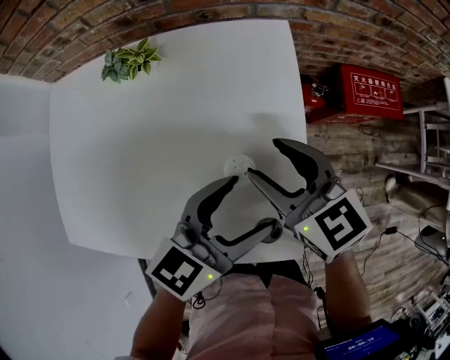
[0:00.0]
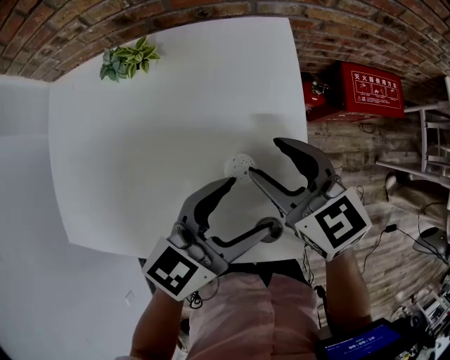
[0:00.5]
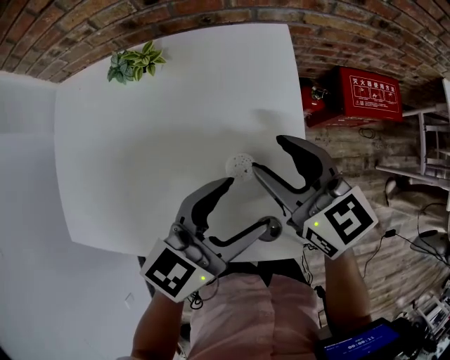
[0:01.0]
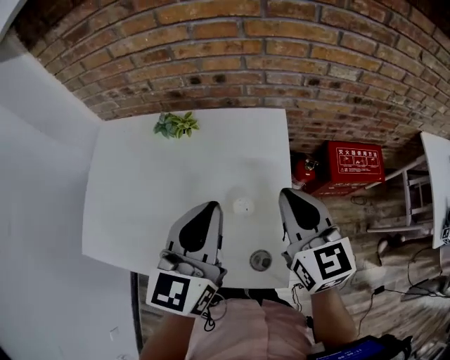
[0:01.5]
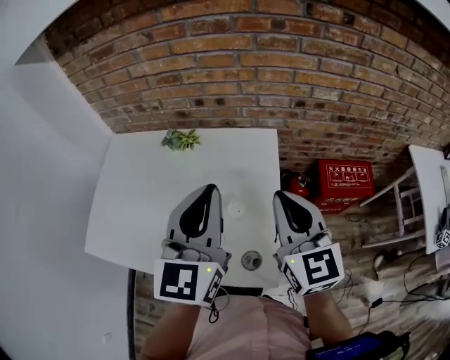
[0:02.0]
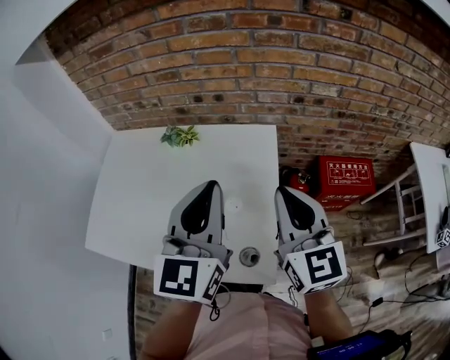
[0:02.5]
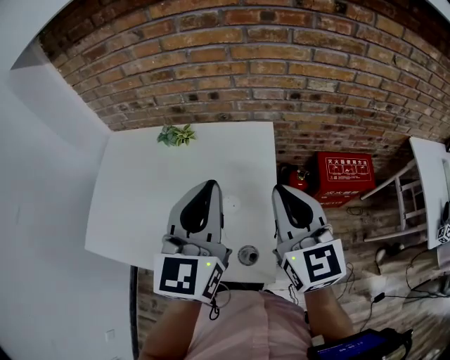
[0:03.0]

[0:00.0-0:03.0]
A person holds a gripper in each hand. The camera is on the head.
0:00.0 to 0:01.5: The left gripper goes about 15 cm upward and to the left, changes its angle by roughly 40 degrees, and closes up, while the right gripper is displaced upward by roughly 10 cm, changes its angle by roughly 20 degrees, and closes.
0:01.5 to 0:03.0: The two grippers go some 10 cm upward.

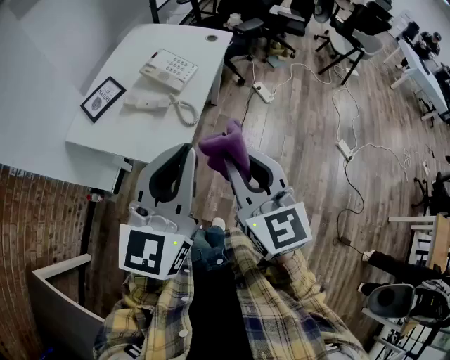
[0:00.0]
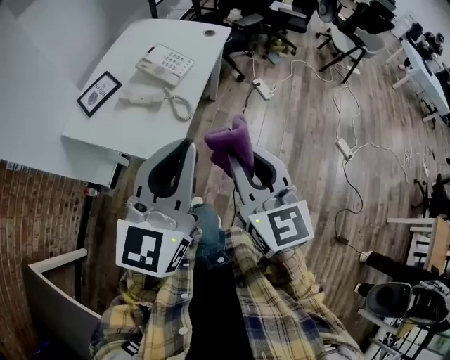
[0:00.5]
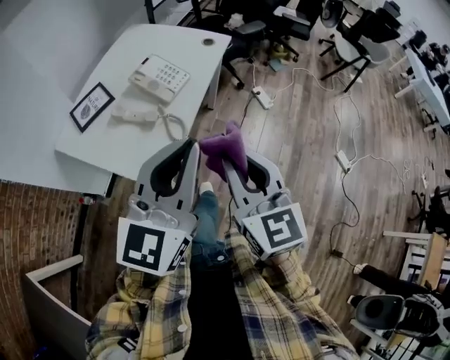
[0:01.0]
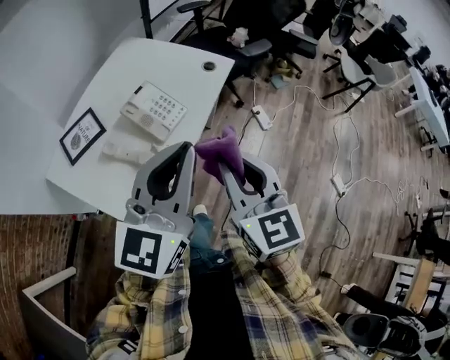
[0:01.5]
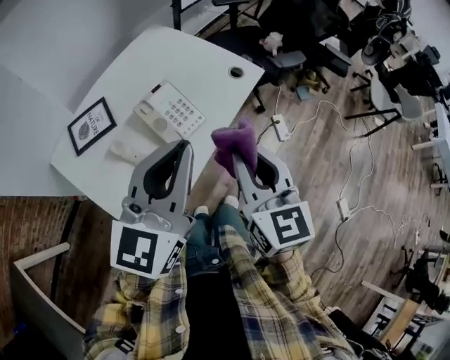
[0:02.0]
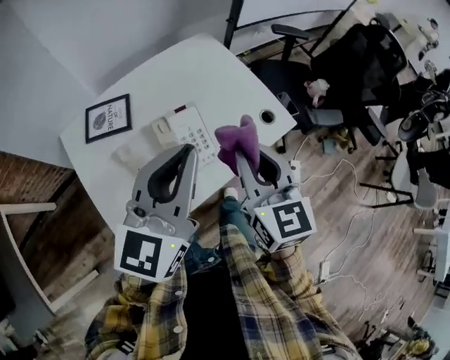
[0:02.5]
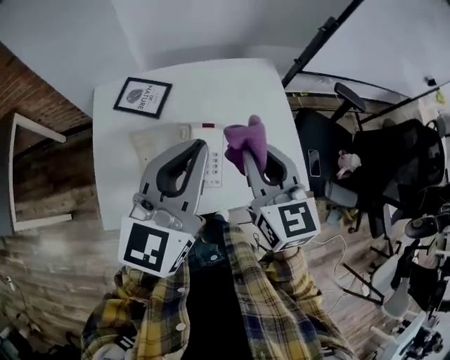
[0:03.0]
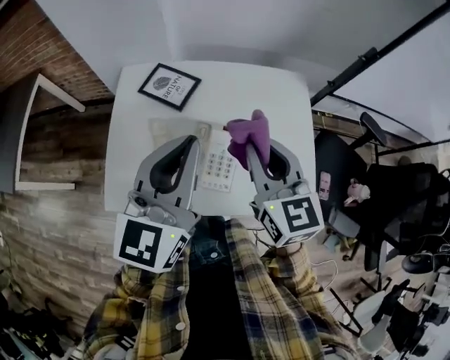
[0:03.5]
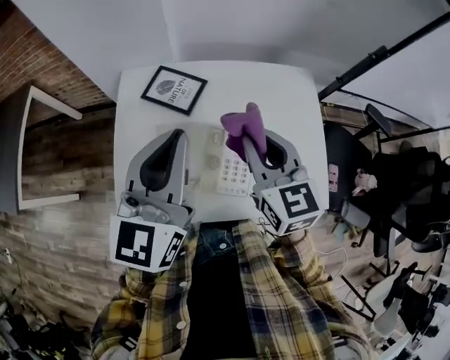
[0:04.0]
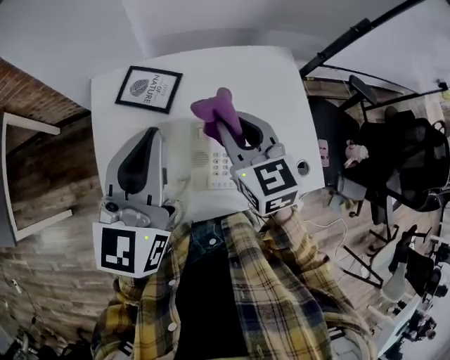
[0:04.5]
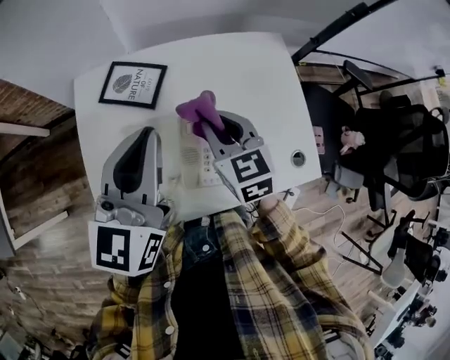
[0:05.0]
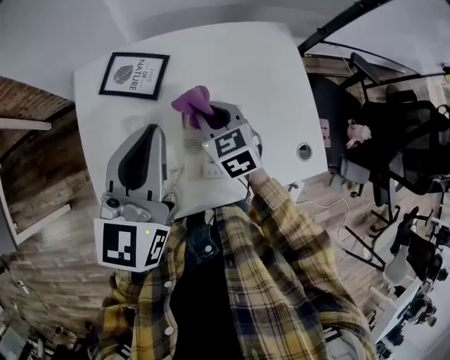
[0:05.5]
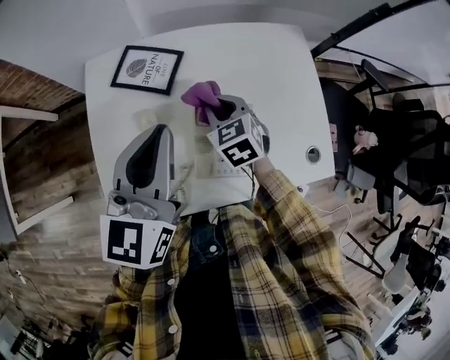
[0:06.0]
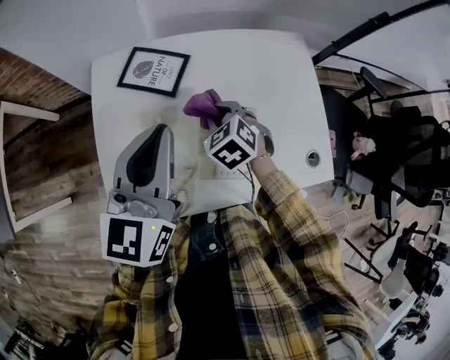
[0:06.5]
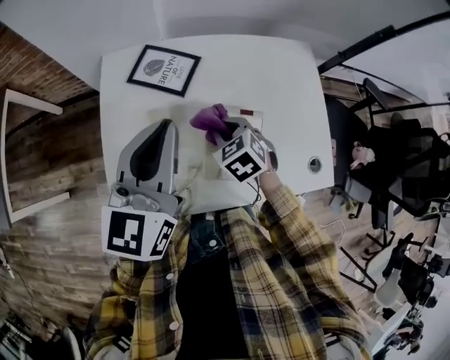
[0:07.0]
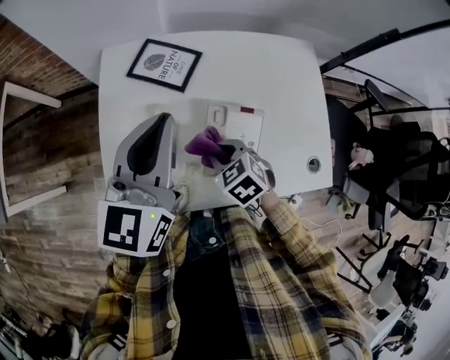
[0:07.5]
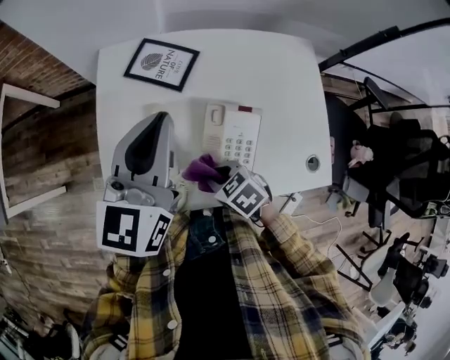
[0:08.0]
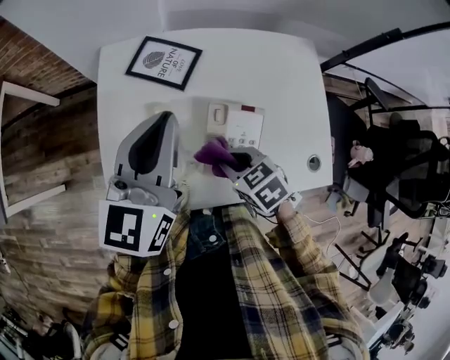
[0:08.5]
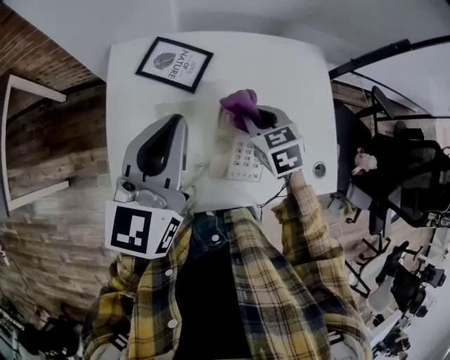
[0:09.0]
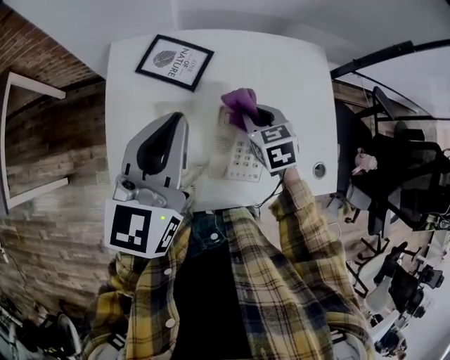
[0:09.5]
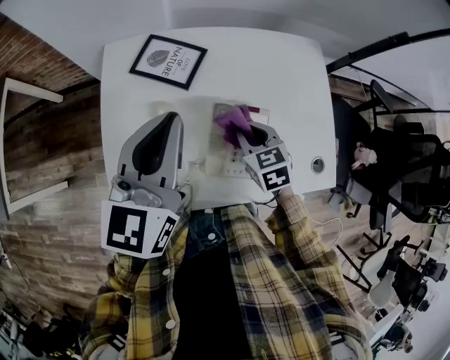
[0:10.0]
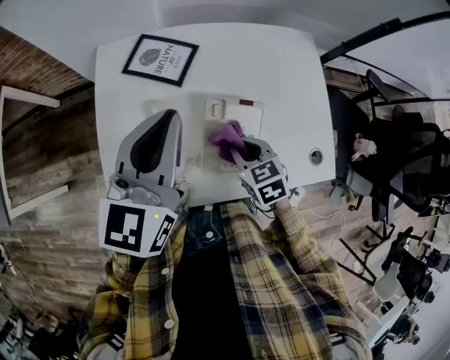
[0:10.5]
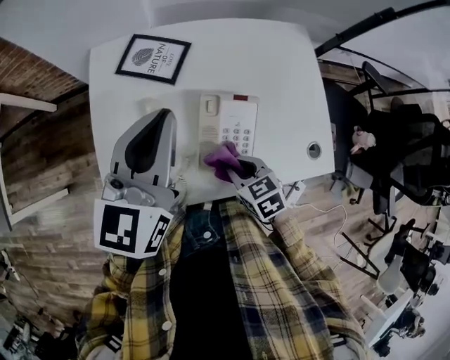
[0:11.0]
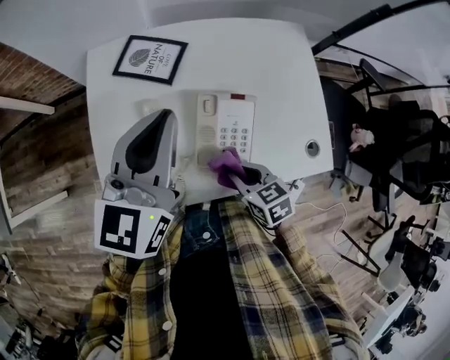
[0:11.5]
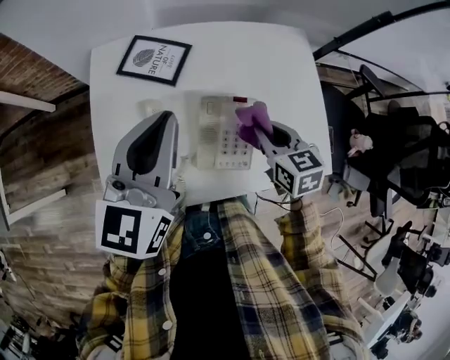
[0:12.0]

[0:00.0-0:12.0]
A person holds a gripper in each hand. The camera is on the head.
0:00.0 to 0:02.0: The grippers both shift forward by some 30 cm.
0:02.0 to 0:04.0: The right gripper changes place by approximately 30 cm, and swivels roughly 60 degrees. The left gripper shifts by about 20 cm, and turns by roughly 60 degrees.
0:04.0 to 0:06.0: The left gripper moves downward, some 5 cm. Meanwhile the right gripper is displaced downward by some 20 cm, and turns by about 30 degrees.
0:06.0 to 0:08.0: The right gripper changes place by about 20 cm, and rotates approximately 30 degrees.
0:08.0 to 0:10.0: The right gripper shifts about 15 cm forward and to the right, and rotates some 30 degrees.
0:10.0 to 0:12.0: The right gripper heads to the right and upward, covering about 10 cm, and goes backward and returns, some 15 cm each way.

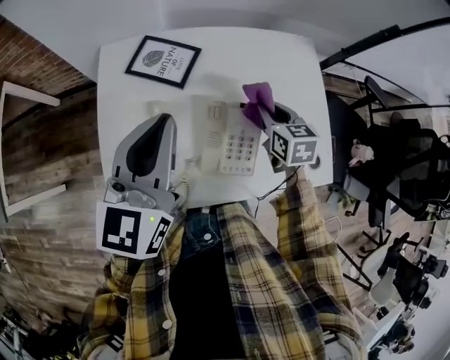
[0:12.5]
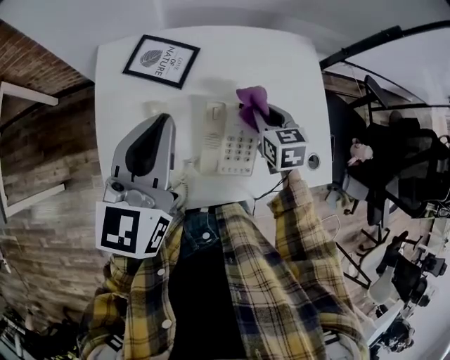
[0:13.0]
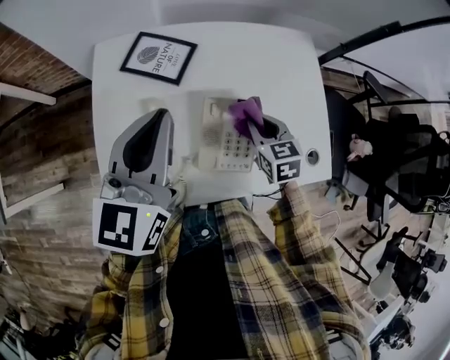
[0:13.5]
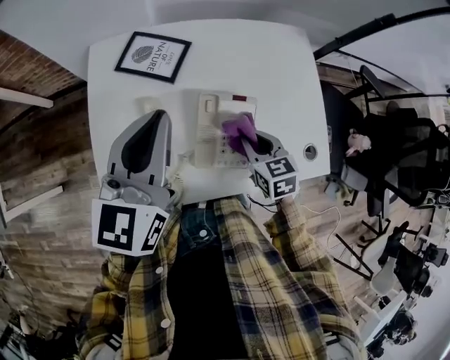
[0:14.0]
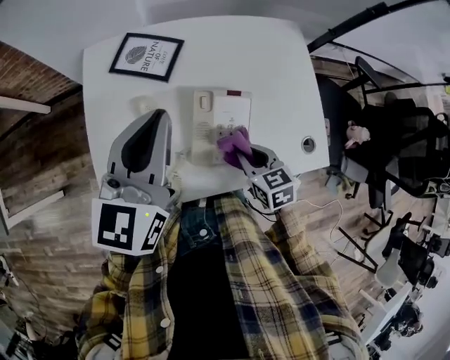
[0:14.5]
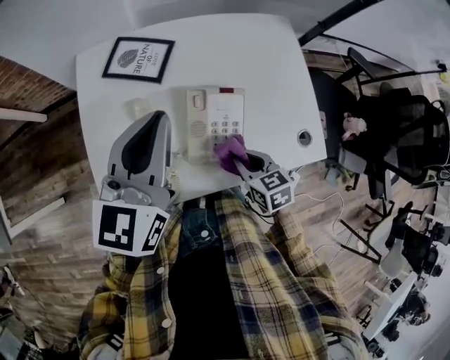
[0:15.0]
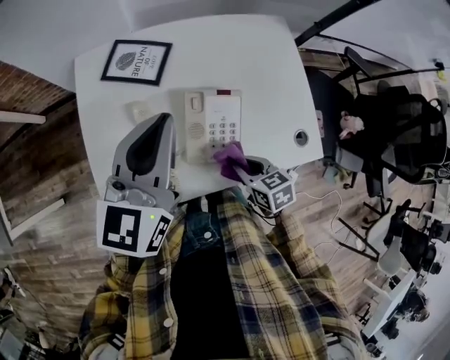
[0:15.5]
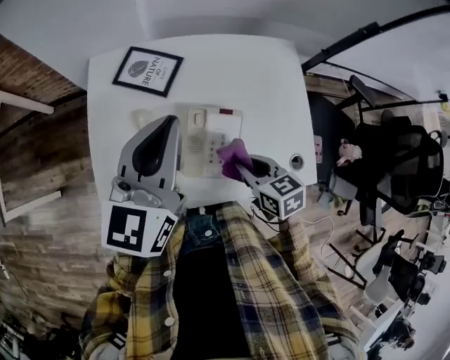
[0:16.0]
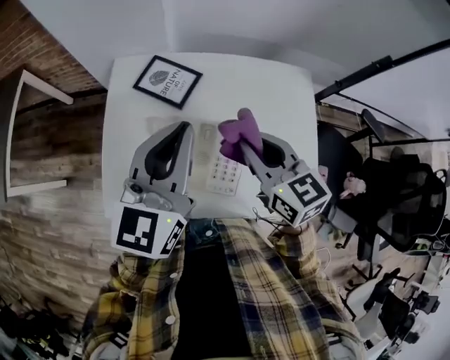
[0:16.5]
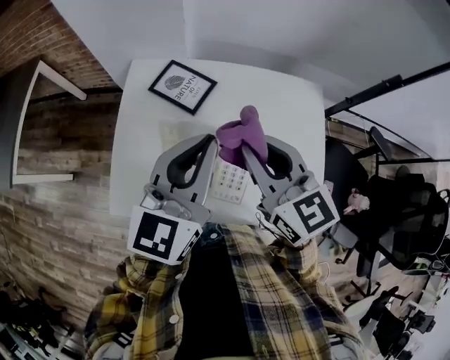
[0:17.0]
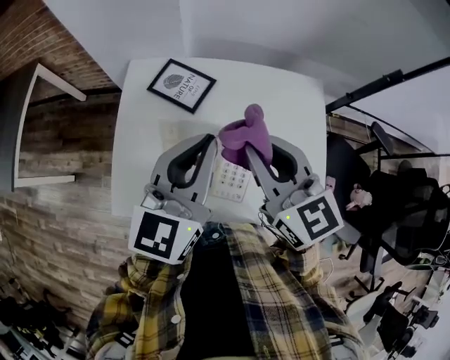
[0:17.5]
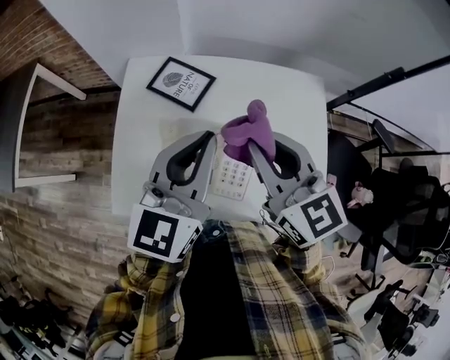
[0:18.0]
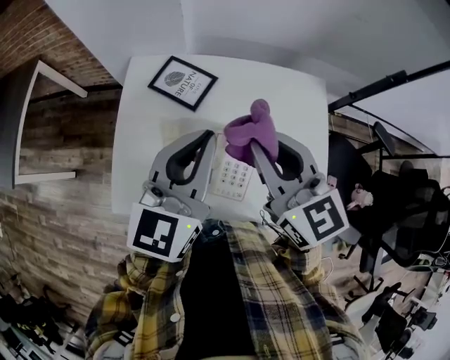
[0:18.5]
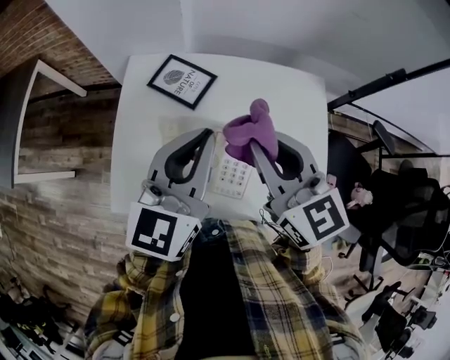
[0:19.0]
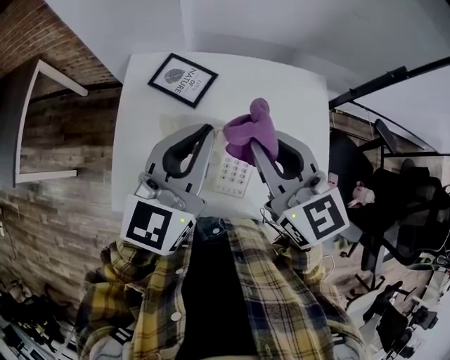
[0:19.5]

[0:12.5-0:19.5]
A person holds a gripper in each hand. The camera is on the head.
0:12.5 to 0:14.5: The right gripper is displaced backward by roughly 15 cm.
0:14.5 to 0:16.0: The right gripper is displaced upward by approximately 5 cm.
0:16.0 to 0:17.5: The right gripper travels upward by some 20 cm, and swivels some 40 degrees.
0:17.5 to 0:19.5: Both grippers stay put.

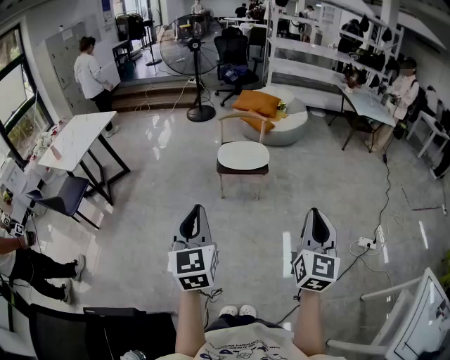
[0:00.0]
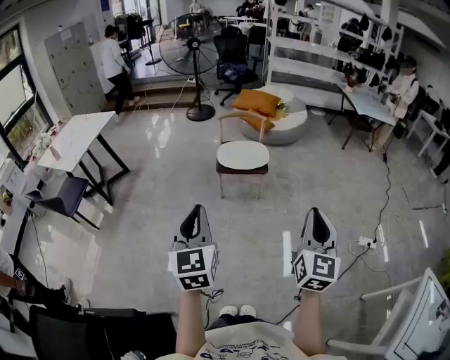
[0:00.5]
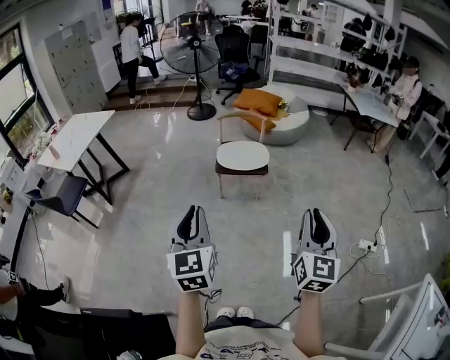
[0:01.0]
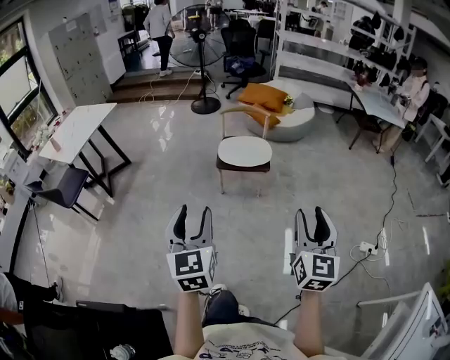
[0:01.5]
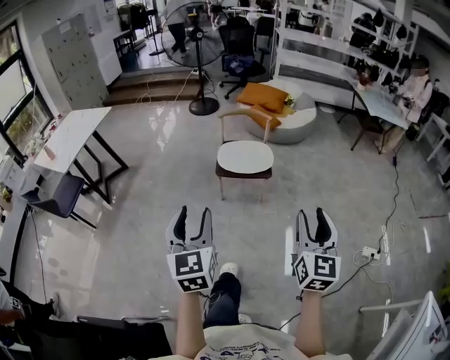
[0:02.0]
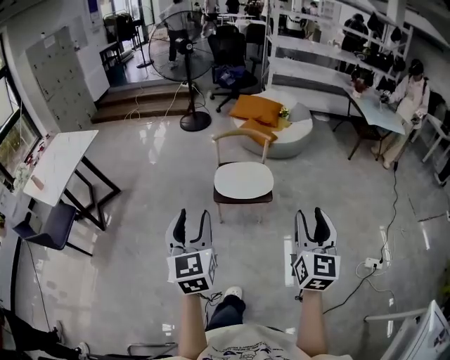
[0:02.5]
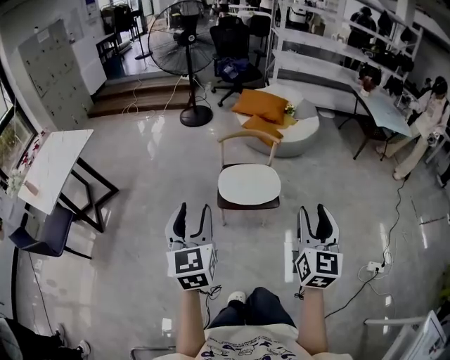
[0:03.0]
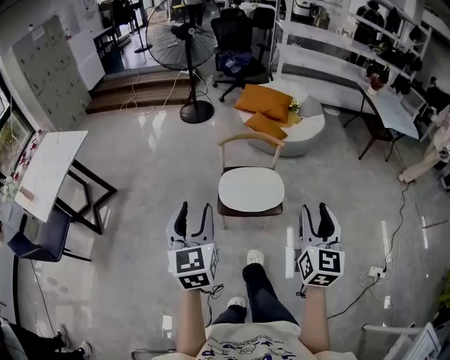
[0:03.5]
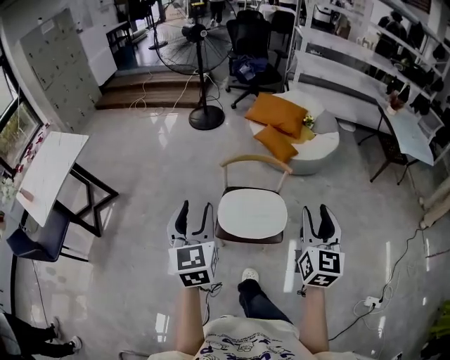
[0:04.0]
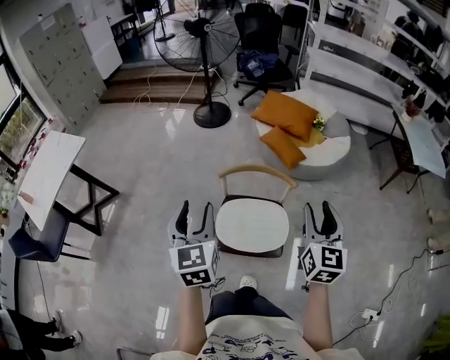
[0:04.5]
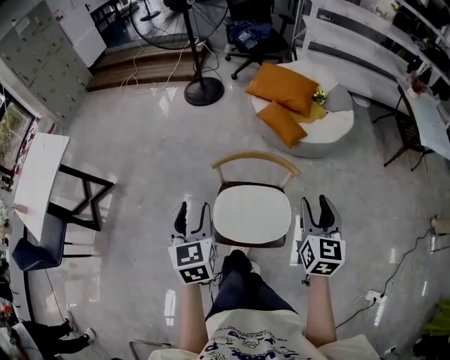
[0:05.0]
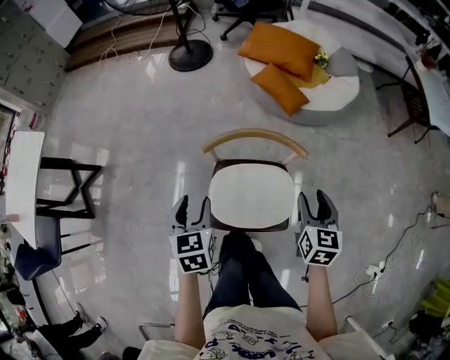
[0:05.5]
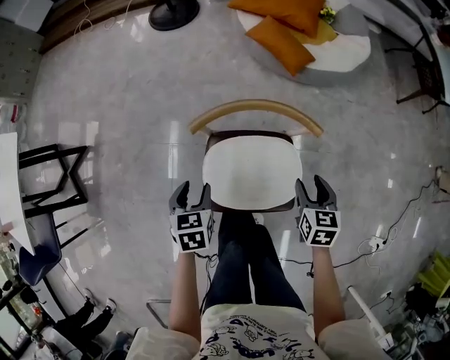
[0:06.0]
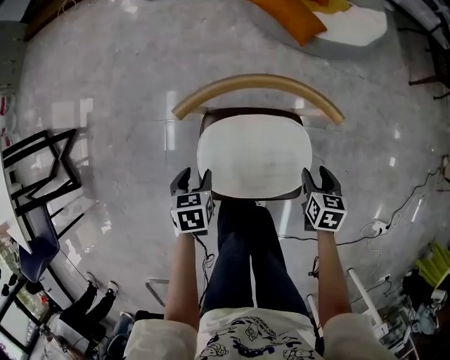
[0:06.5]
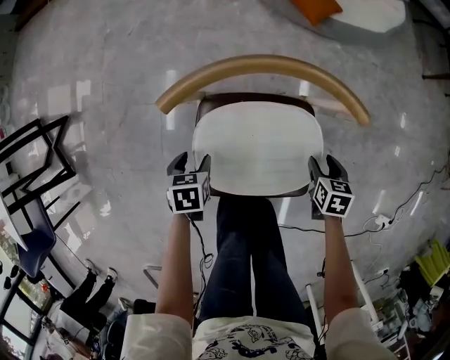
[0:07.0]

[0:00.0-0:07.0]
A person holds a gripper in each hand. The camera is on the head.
0:00.0 to 0:02.0: The two grippers go about 20 cm forward. The left gripper opens up. The right gripper opens.
0:02.0 to 0:03.5: Both grippers are carried forward, approximately 50 cm.
0:03.5 to 0:05.0: The pair of grippers is taken forward, roughly 50 cm.
0:05.0 to 0:07.0: The grippers both shift downward by roughly 60 cm. The left gripper tilts its fingers approximately 50 degrees downward, while the right gripper angles its fingers downward, by approximately 50 degrees.
